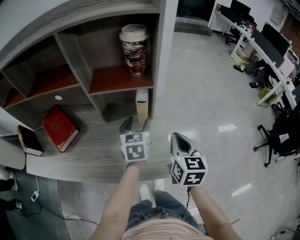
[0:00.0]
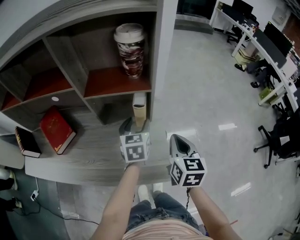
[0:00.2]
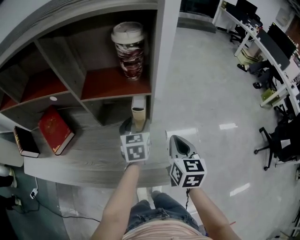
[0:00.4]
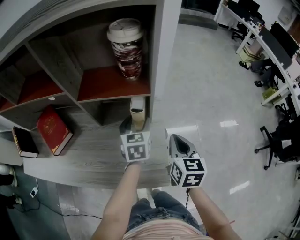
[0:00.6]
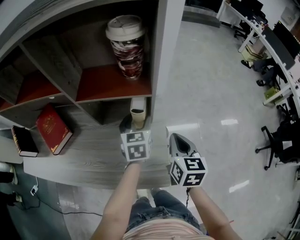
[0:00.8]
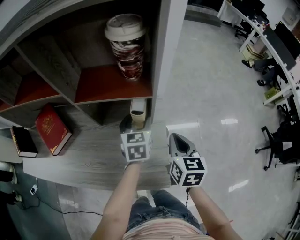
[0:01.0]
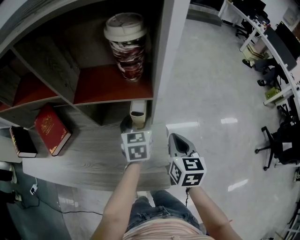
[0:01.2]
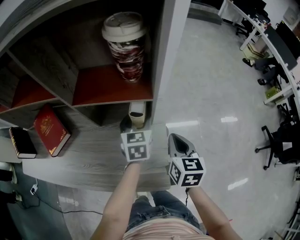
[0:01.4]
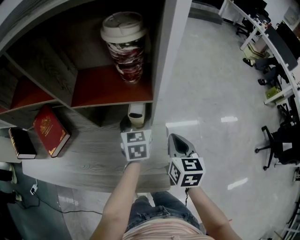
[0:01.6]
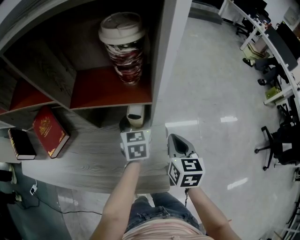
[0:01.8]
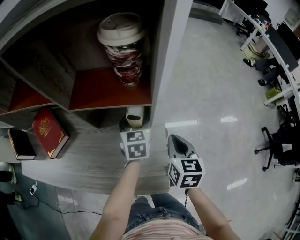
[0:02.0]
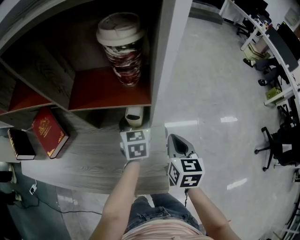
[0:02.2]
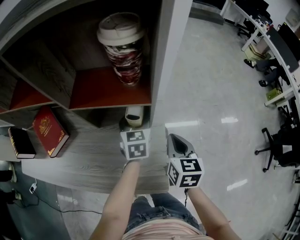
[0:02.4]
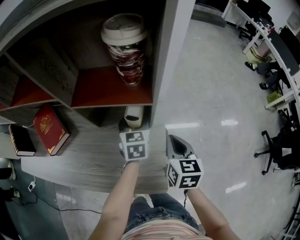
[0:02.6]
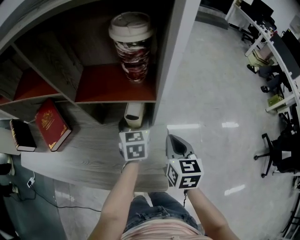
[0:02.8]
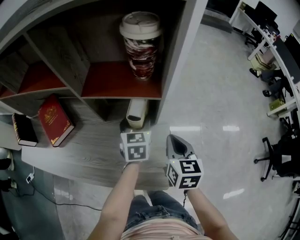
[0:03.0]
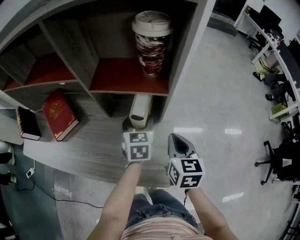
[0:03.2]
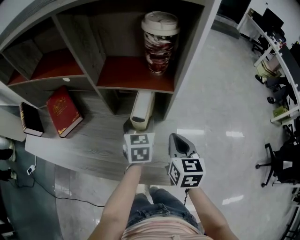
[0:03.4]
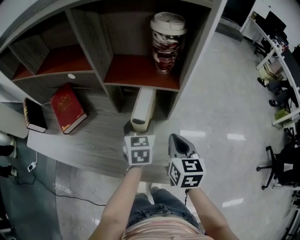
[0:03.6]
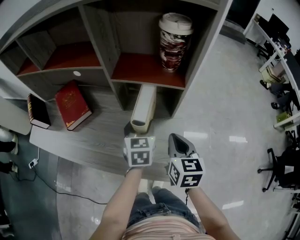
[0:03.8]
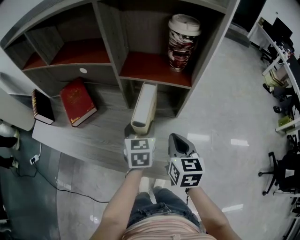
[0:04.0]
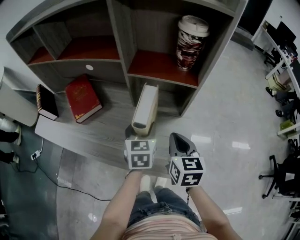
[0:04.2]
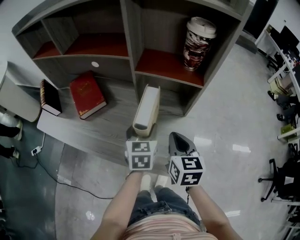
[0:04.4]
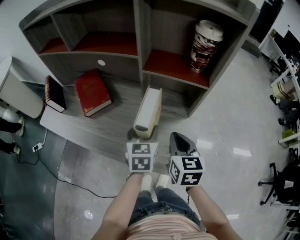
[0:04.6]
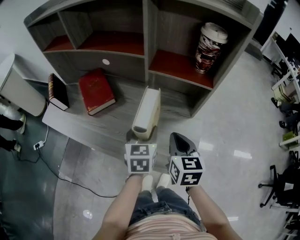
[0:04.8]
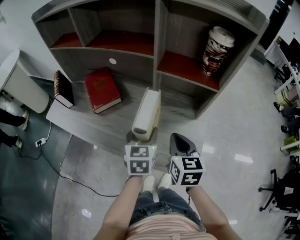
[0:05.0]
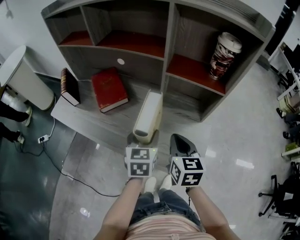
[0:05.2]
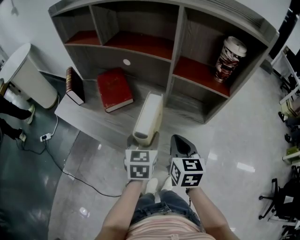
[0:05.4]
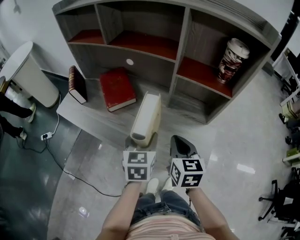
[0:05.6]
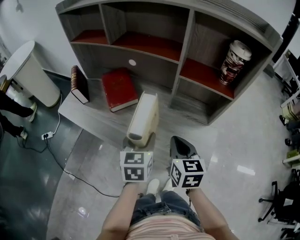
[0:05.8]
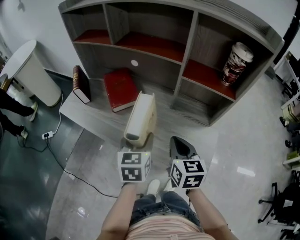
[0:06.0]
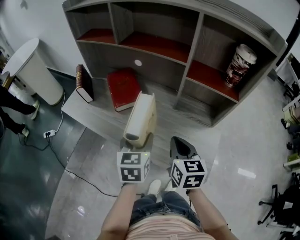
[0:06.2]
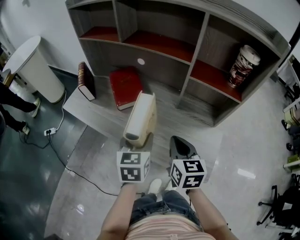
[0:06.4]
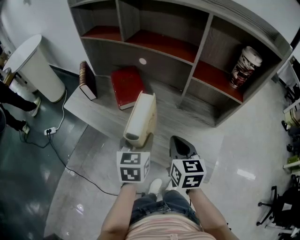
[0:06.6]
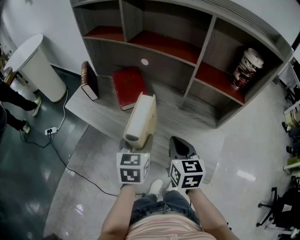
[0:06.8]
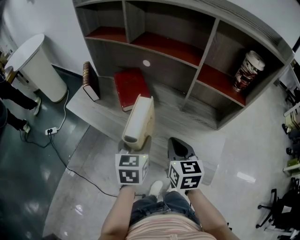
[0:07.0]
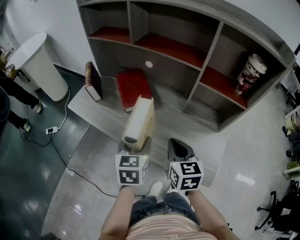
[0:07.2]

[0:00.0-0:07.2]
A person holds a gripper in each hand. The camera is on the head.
0:00.0 to 0:01.4: The left gripper is displaced forward by roughly 10 cm. The right gripper shifts roughly 10 cm forward and downward.
0:01.4 to 0:02.8: The grippers move only a little.
0:02.8 to 0:04.4: The grippers both shift to the left and backward by approximately 15 cm.
0:04.4 to 0:05.8: The right gripper heads to the left, covering roughly 10 cm, while the left gripper shifts some 15 cm to the left and backward.
0:05.8 to 0:07.2: Both grippers move to the left, roughly 10 cm.

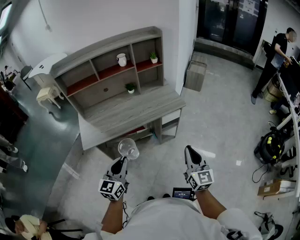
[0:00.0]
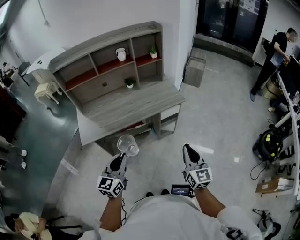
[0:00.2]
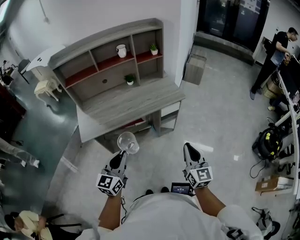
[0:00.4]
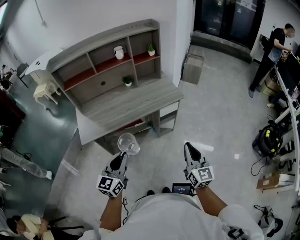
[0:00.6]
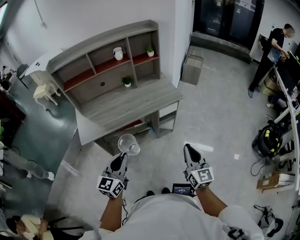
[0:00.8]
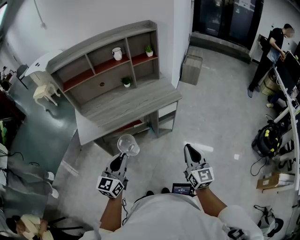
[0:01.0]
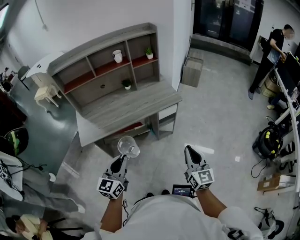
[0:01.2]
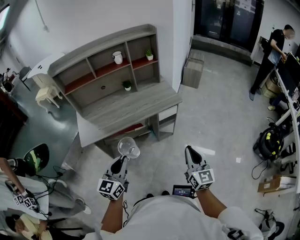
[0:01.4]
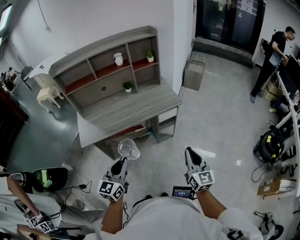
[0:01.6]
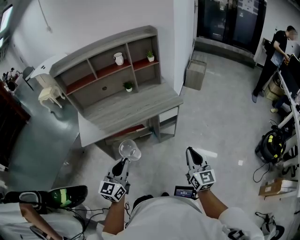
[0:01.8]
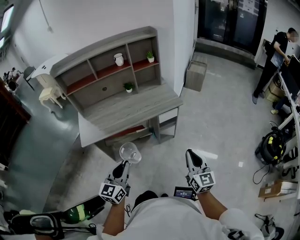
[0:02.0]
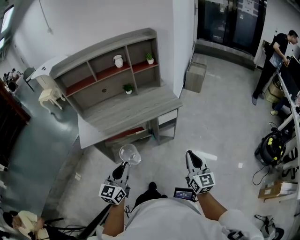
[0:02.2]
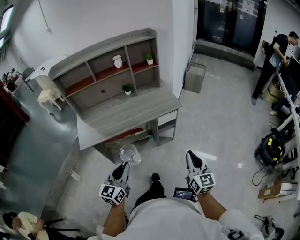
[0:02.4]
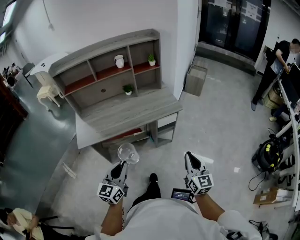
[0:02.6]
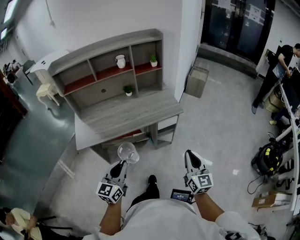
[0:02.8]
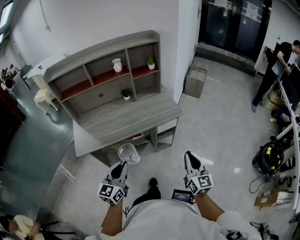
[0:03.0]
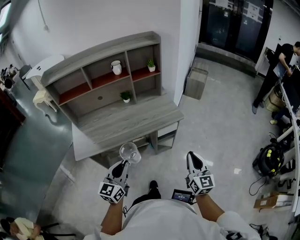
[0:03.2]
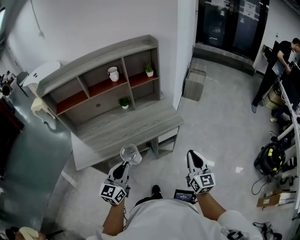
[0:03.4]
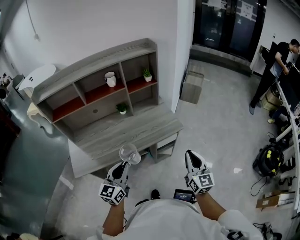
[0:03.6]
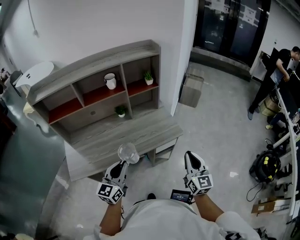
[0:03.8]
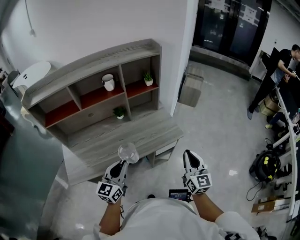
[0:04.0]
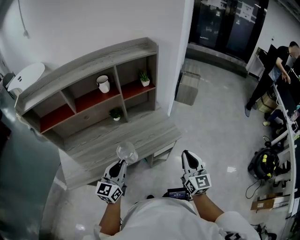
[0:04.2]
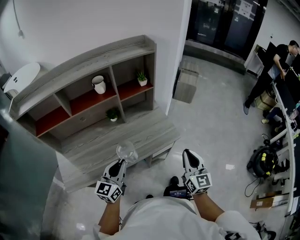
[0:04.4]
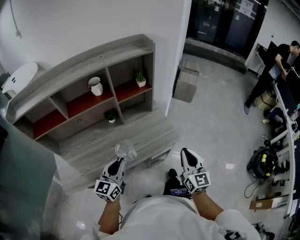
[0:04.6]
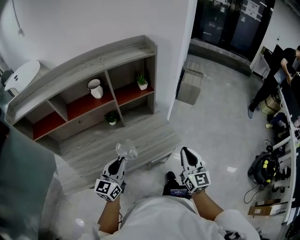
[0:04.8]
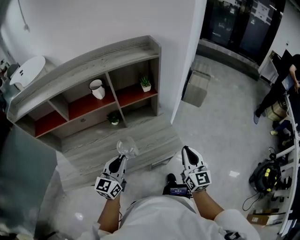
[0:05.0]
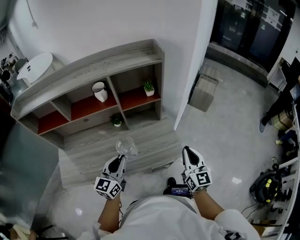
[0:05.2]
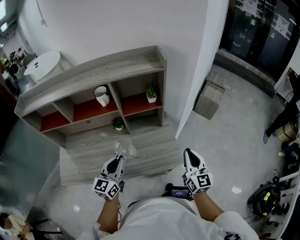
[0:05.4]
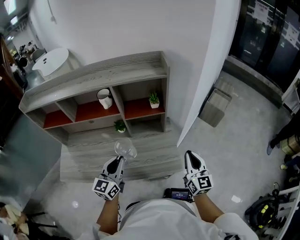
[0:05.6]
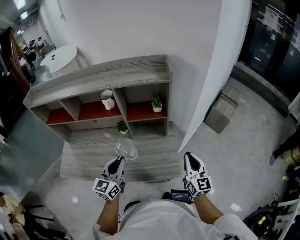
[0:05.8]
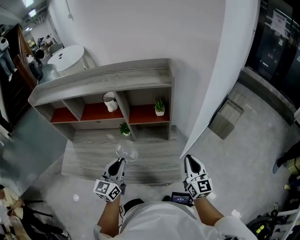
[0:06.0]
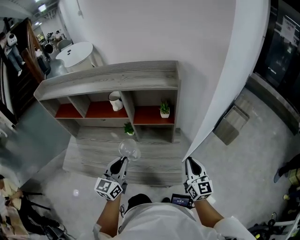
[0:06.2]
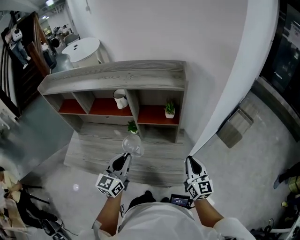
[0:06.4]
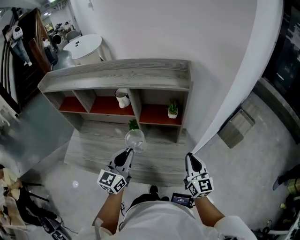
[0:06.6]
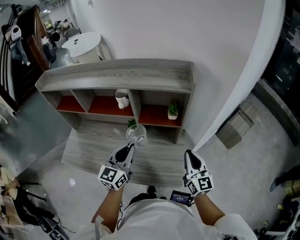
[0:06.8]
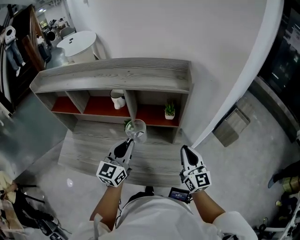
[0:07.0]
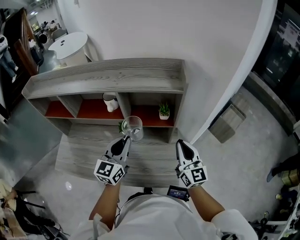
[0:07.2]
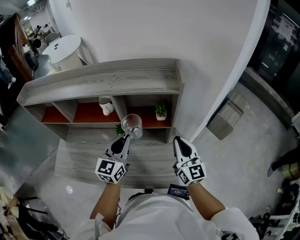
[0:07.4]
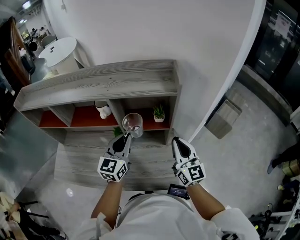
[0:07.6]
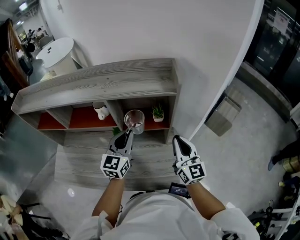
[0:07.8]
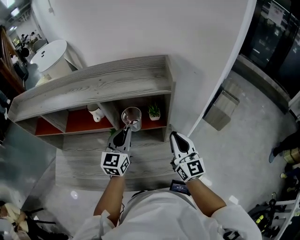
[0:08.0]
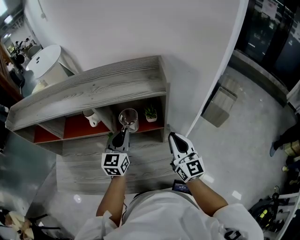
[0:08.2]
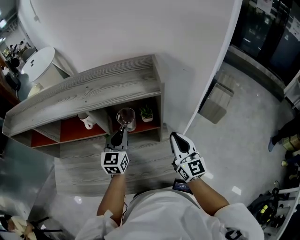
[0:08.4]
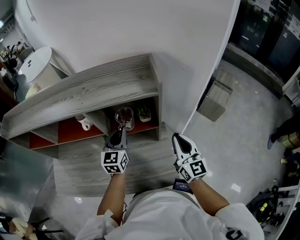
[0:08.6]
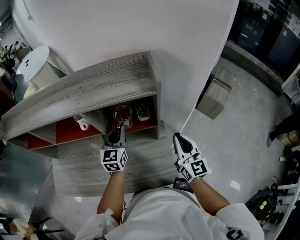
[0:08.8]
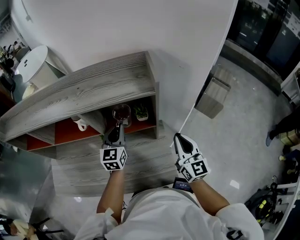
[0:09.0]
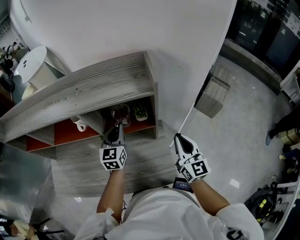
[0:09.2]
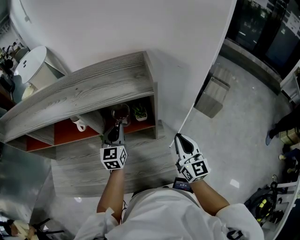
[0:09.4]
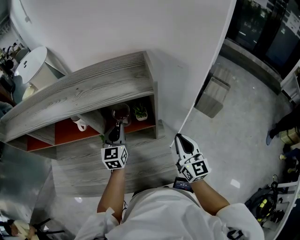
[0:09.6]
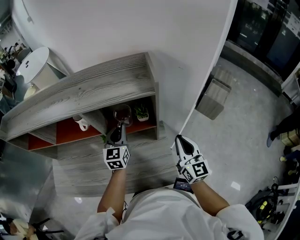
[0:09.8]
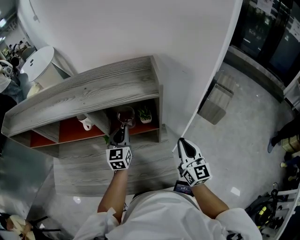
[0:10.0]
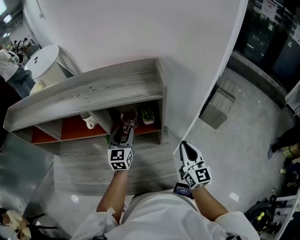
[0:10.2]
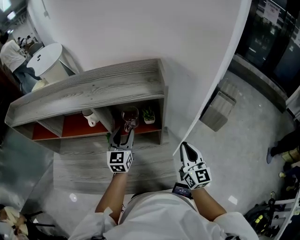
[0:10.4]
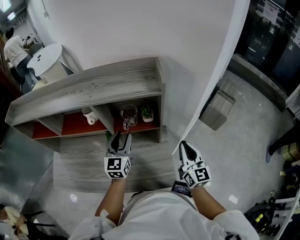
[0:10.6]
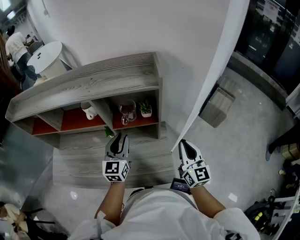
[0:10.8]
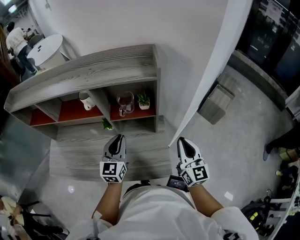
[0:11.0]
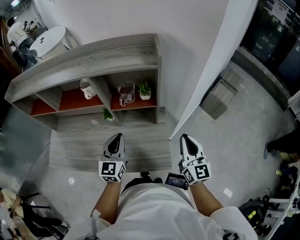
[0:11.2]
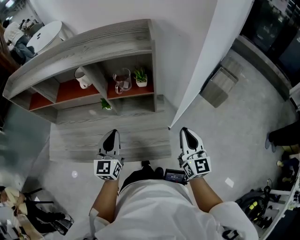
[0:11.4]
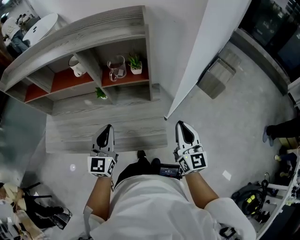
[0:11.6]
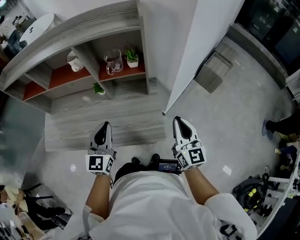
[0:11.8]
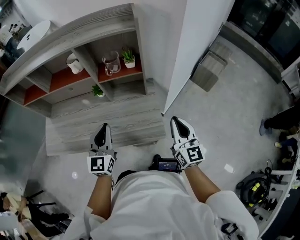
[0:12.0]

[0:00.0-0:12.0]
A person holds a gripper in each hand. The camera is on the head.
0:00.0 to 0:01.6: The grippers stay close to where they were, moving slightly.
0:01.6 to 0:03.0: Both grippers travel together forward, approximately 10 cm.
0:03.0 to 0:04.4: The grippers both shift forward by about 25 cm.
0:04.4 to 0:06.0: The right gripper shifts by about 30 cm, and turns by about 30 degrees. The left gripper changes place by some 20 cm, and changes its angle by approximately 30 degrees.
0:06.0 to 0:07.6: The right gripper heads forward, to the left and upward, covering roughly 15 cm, while the left gripper is displaced forward by some 15 cm.
0:07.6 to 0:09.0: The right gripper is displaced to the right by roughly 5 cm; the left gripper goes some 10 cm forward and downward.
0:09.0 to 0:10.4: The left gripper opens up.
0:10.4 to 0:12.0: The left gripper is displaced backward by some 25 cm, and closes. Meanwhile the right gripper is displaced backward by about 15 cm.

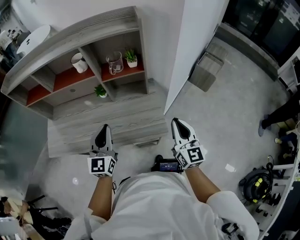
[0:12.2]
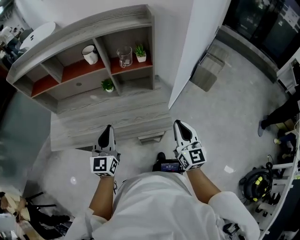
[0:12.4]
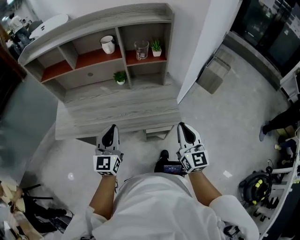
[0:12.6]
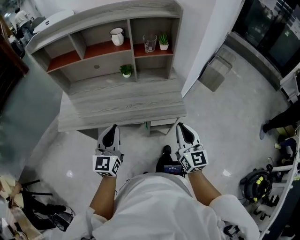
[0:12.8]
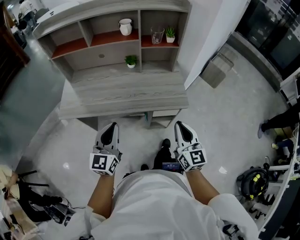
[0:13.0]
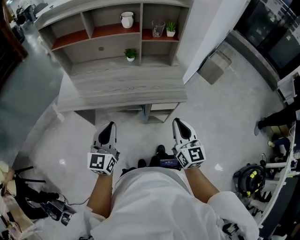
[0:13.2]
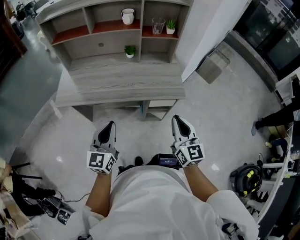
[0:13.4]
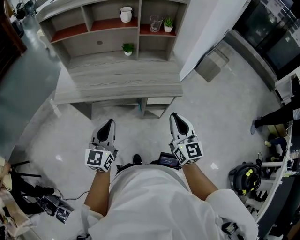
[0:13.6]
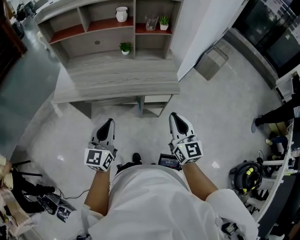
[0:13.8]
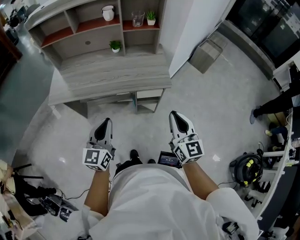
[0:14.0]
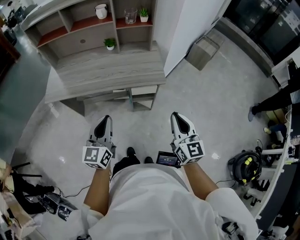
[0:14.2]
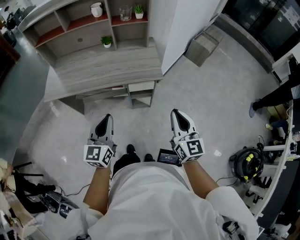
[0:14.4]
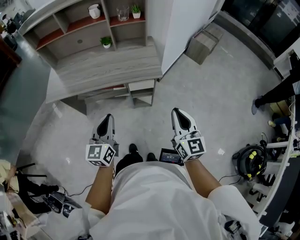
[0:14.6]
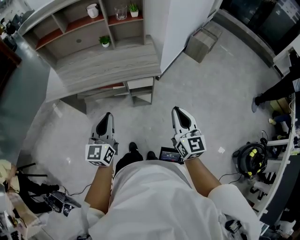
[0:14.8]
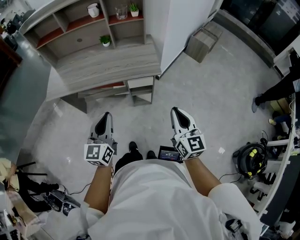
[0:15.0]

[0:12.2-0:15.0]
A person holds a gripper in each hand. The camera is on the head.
0:12.2 to 0:13.6: The grippers both shift backward and to the left by roughly 30 cm.
0:13.6 to 0:15.0: Both grippers move to the right and backward, approximately 20 cm.

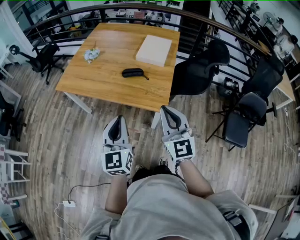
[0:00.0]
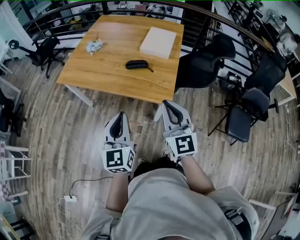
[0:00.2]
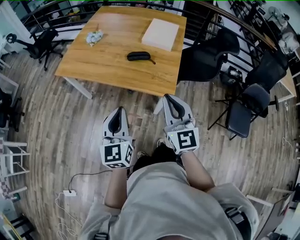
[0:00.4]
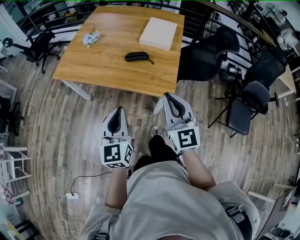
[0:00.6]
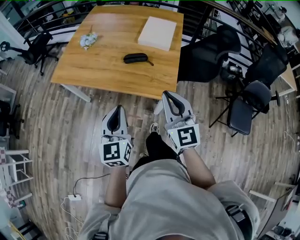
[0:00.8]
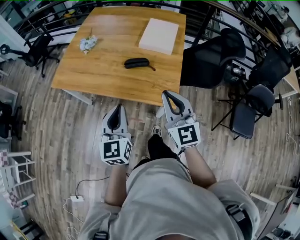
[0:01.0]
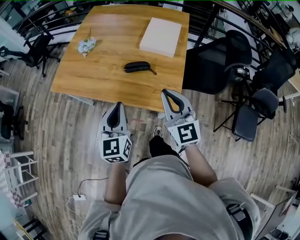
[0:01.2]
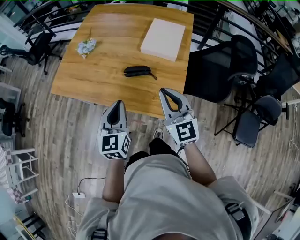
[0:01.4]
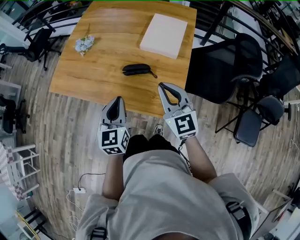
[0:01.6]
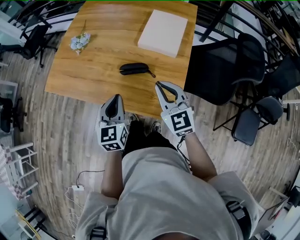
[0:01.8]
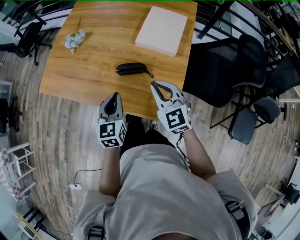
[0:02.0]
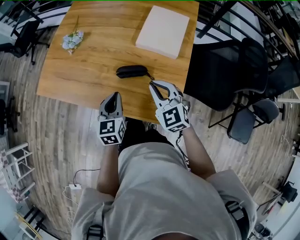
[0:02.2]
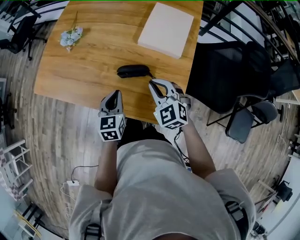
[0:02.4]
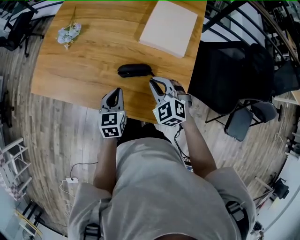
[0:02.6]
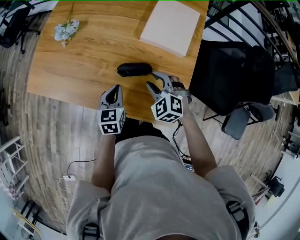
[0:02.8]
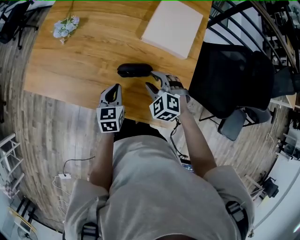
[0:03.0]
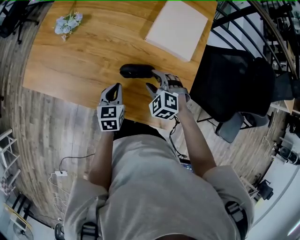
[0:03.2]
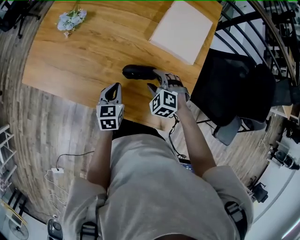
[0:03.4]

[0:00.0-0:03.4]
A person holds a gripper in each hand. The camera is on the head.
0:00.0 to 0:01.6: The grippers both shift forward by about 25 cm.
0:01.6 to 0:03.4: The two grippers go some 30 cm downward and forward. The right gripper points its fingers about 50 degrees further downward, and opens. The left gripper turns by about 30 degrees.
